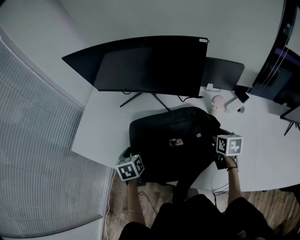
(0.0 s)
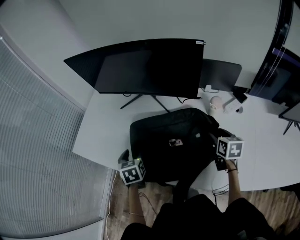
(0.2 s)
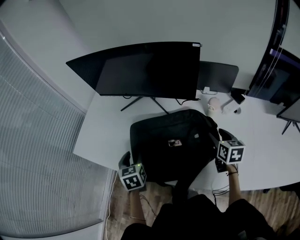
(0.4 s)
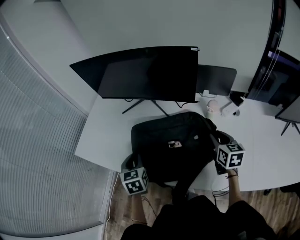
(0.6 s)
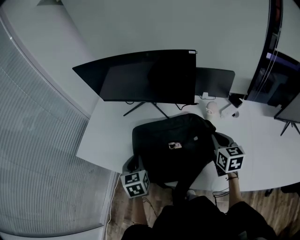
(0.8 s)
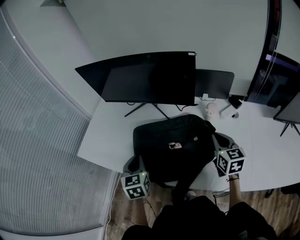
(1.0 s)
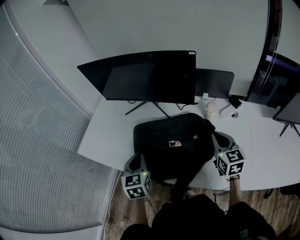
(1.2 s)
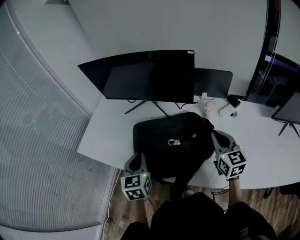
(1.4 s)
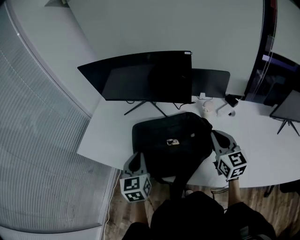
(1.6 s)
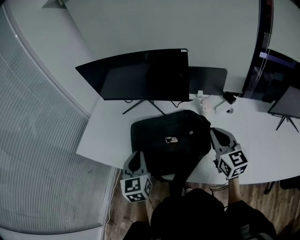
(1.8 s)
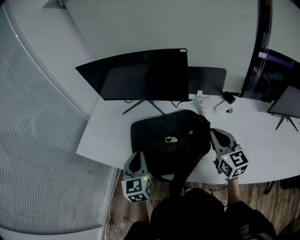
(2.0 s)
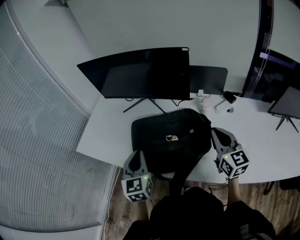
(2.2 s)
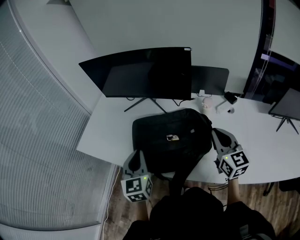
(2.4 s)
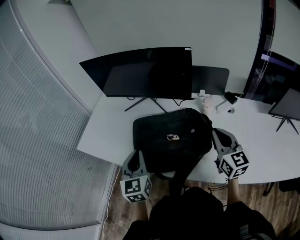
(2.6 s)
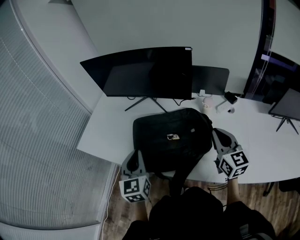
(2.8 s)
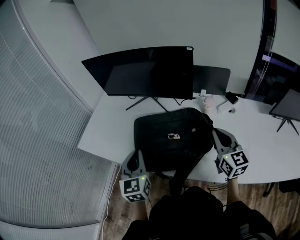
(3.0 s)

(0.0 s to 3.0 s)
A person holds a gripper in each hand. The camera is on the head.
0.0 s - 1.6 s: The two grippers go roughly 20 cm upward and backward. The left gripper changes its angle by about 30 degrees, and closes up. The right gripper tilts its fingers some 30 degrees upward, and closes up.
1.6 s - 3.0 s: There are only small adjustments of the grippers.

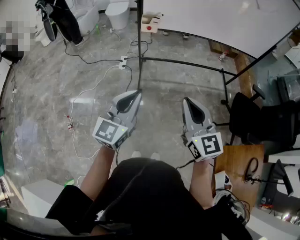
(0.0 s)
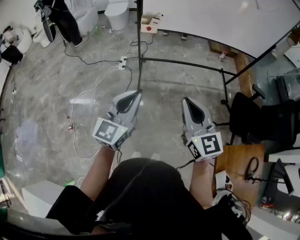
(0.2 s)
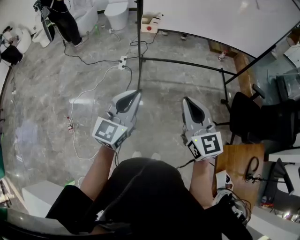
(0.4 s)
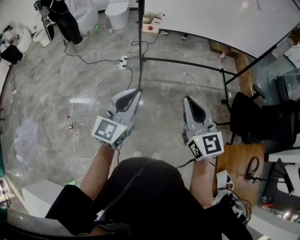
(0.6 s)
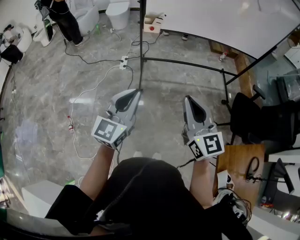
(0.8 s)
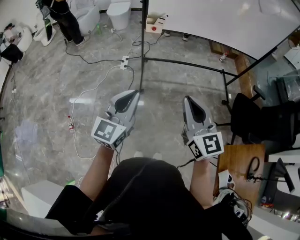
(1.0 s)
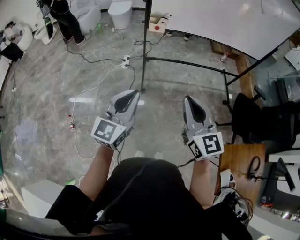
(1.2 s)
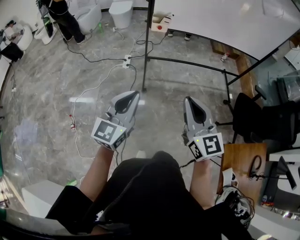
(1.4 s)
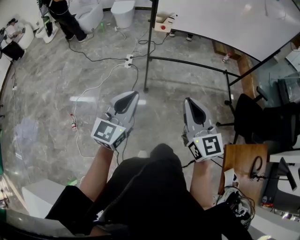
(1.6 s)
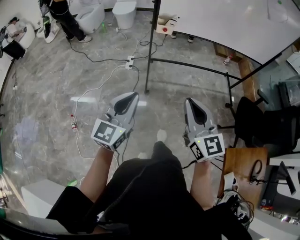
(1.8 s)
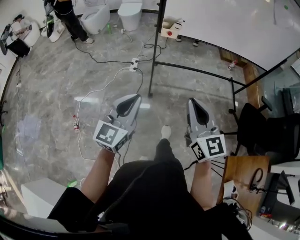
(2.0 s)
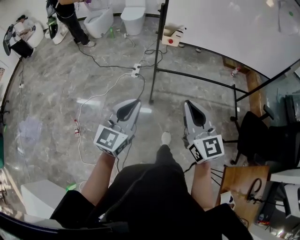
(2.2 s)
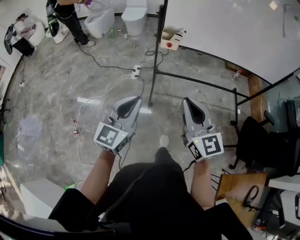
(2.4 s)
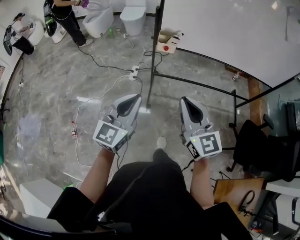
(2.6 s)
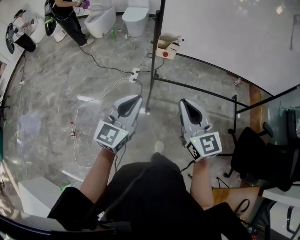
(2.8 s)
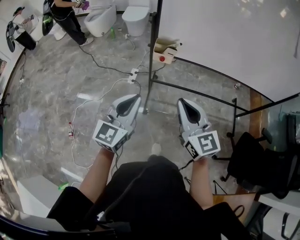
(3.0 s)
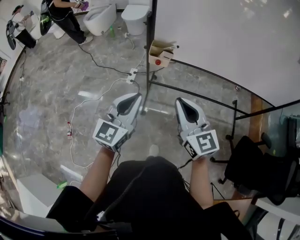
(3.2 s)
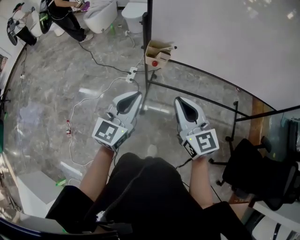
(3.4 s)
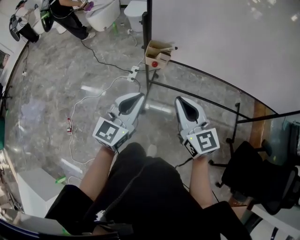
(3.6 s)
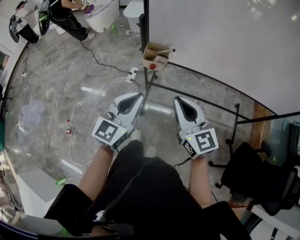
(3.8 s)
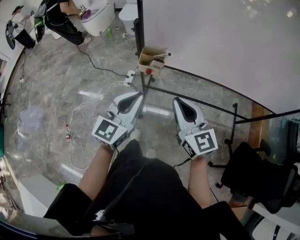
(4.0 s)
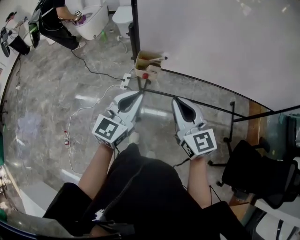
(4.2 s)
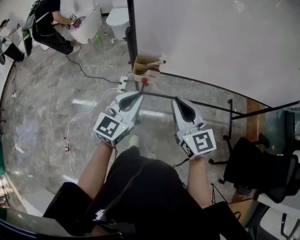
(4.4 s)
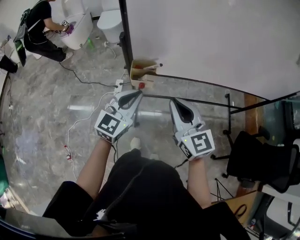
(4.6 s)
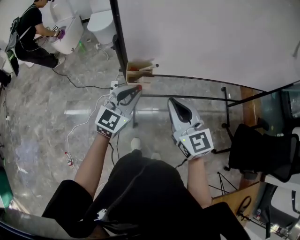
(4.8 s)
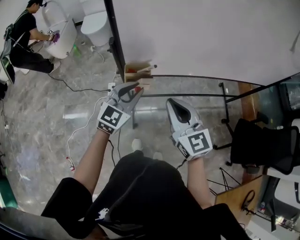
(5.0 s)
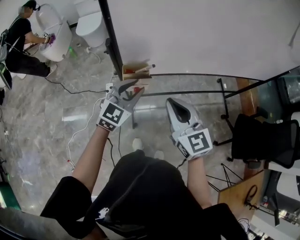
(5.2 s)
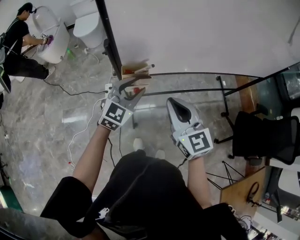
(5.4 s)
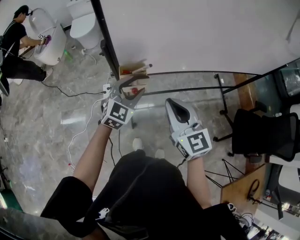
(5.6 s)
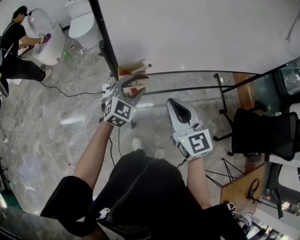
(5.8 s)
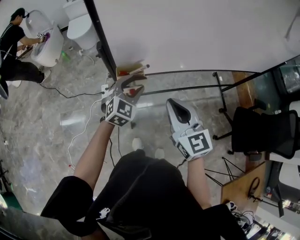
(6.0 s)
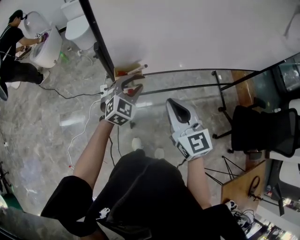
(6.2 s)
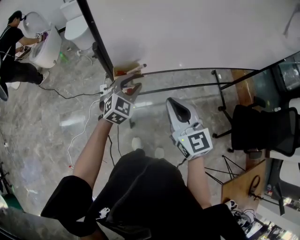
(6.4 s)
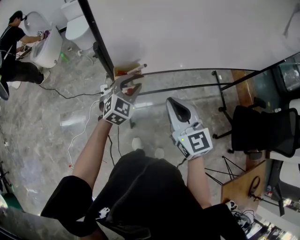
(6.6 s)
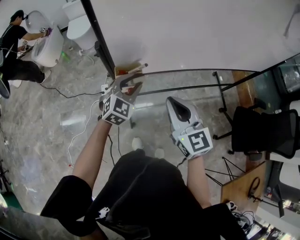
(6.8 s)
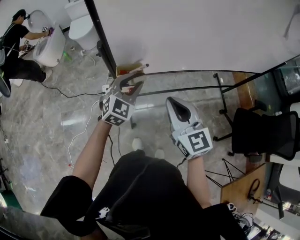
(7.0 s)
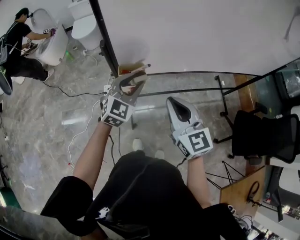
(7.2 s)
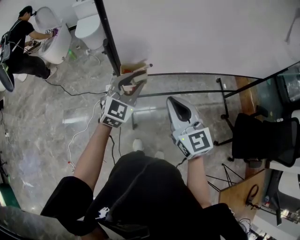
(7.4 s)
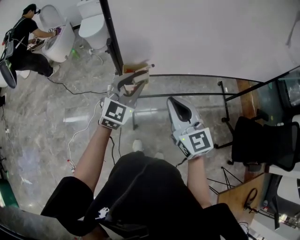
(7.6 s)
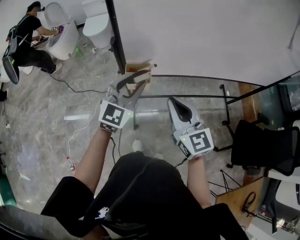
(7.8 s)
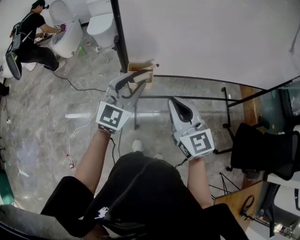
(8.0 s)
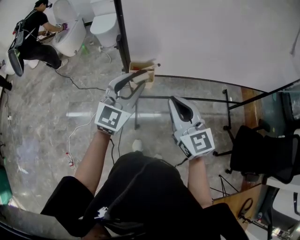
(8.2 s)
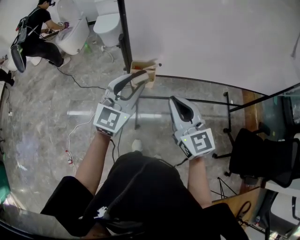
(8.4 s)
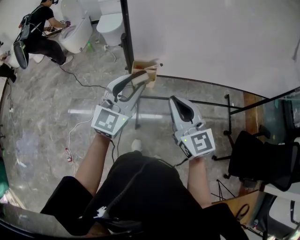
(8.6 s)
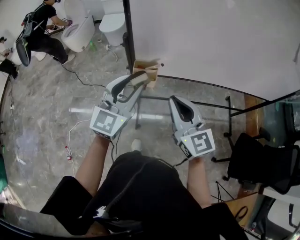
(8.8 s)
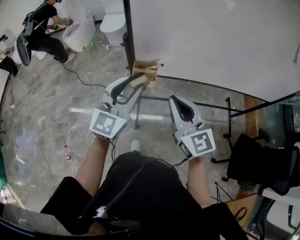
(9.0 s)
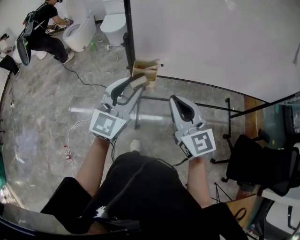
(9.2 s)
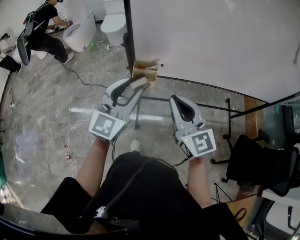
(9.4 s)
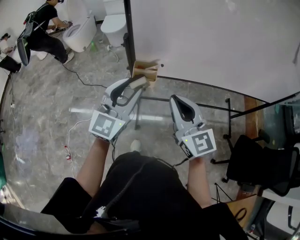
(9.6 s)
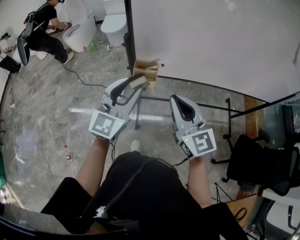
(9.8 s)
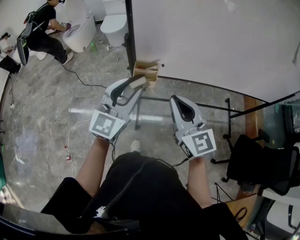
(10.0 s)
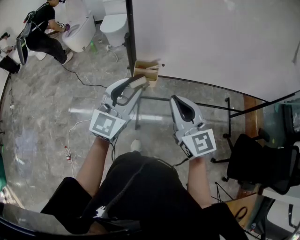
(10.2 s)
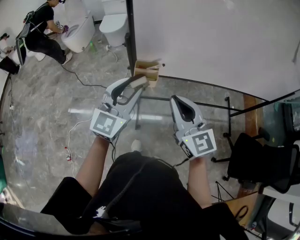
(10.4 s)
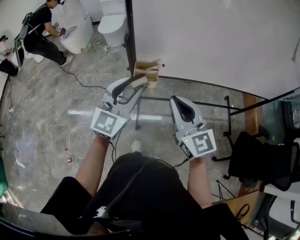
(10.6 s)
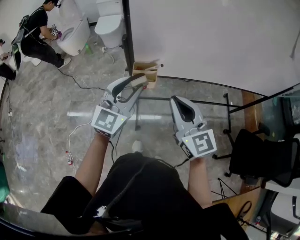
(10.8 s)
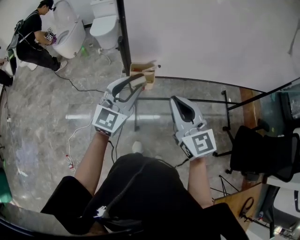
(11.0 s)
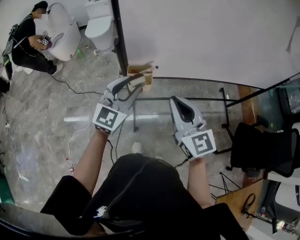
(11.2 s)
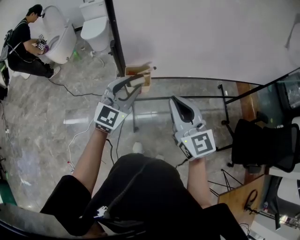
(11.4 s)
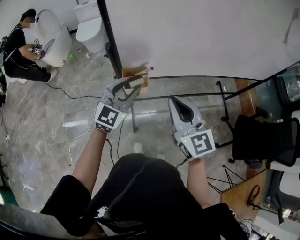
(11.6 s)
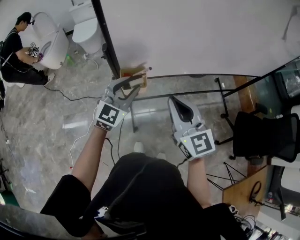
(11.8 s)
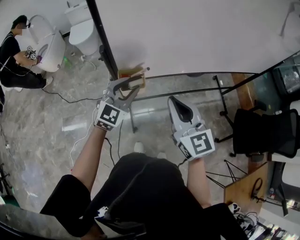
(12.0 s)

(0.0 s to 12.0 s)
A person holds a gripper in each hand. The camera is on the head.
0.0 s - 1.6 s: The grippers both shift to the left by approximately 10 cm.
1.6 s - 3.0 s: The grippers both shift forward by approximately 30 cm.
3.0 s - 4.4 s: The right gripper shifts some 15 cm forward. Meanwhile the left gripper is displaced forward and to the right by some 20 cm.
4.4 s - 6.0 s: The left gripper goes roughly 15 cm forward and downward, turns by roughly 30 degrees, and opens its fingers.
6.0 s - 7.6 s: The left gripper travels upward by roughly 10 cm.
7.6 s - 9.0 s: The left gripper heads backward and upward, covering about 10 cm, and rotates about 20 degrees.
9.0 s - 10.4 s: Both grippers stay put.
10.4 s - 12.0 s: The left gripper moves forward and downward, roughly 15 cm, and rotates roughly 30 degrees.

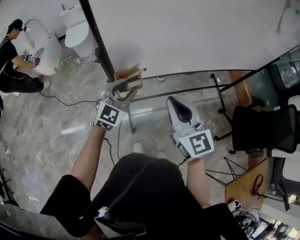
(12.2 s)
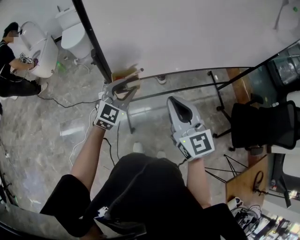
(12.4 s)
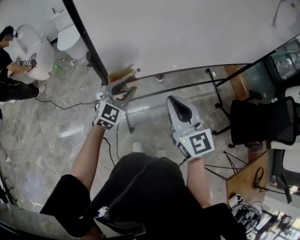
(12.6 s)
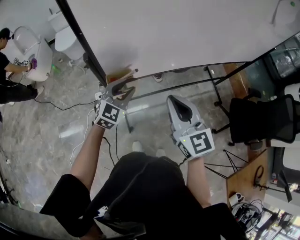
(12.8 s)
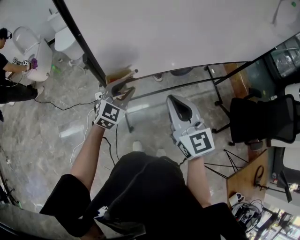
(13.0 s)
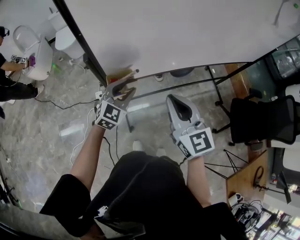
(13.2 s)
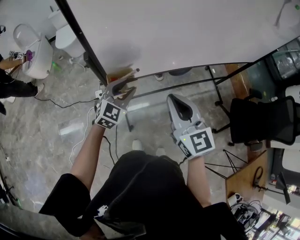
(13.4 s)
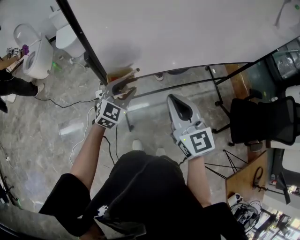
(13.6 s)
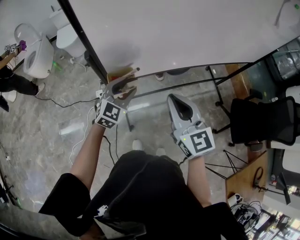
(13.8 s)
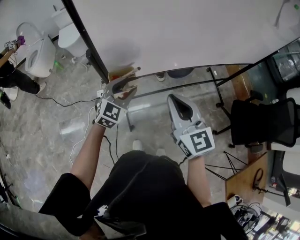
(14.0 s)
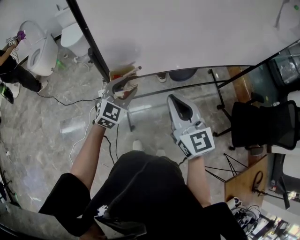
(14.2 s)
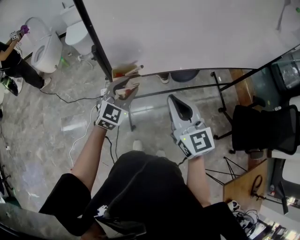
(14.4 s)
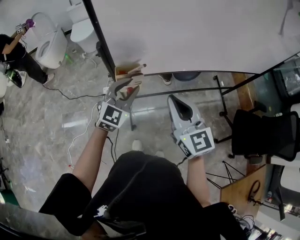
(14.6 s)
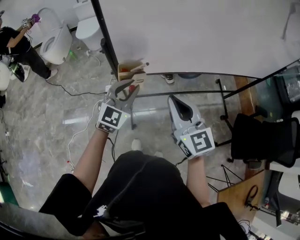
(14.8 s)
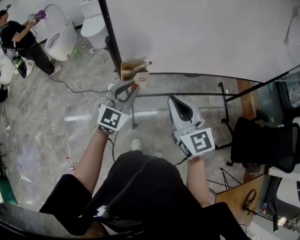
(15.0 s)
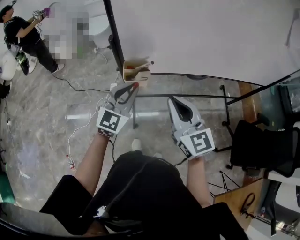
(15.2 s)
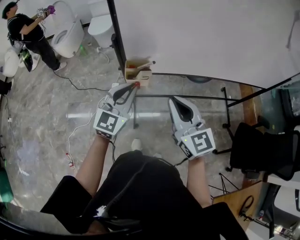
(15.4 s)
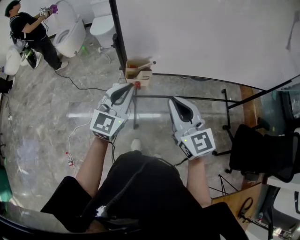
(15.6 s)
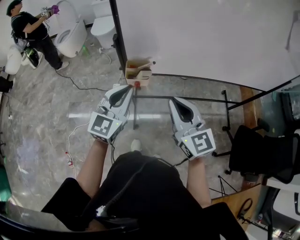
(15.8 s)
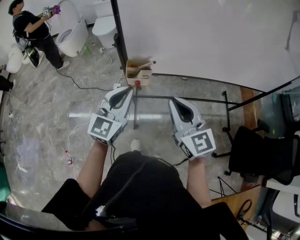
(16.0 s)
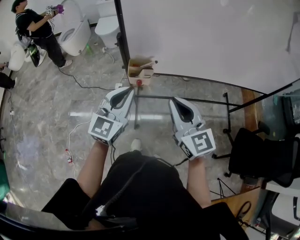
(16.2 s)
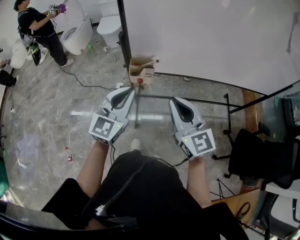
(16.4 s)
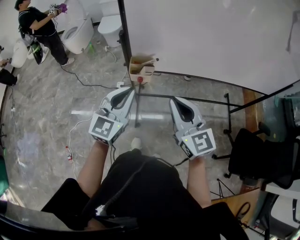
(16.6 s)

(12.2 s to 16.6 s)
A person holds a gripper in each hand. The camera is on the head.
12.2 s - 13.6 s: The left gripper shifts roughly 5 cm downward.
13.6 s - 15.2 s: The left gripper heads backward and upward, covering roughly 15 cm, and closes up; the right gripper shifts by about 5 cm.
15.2 s - 16.6 s: The left gripper is displaced backward by about 5 cm.

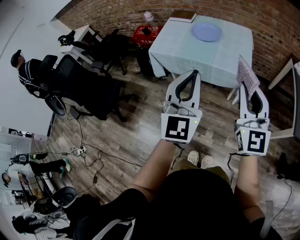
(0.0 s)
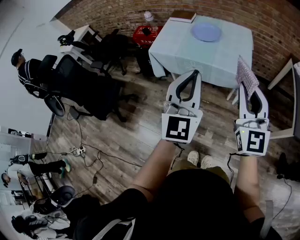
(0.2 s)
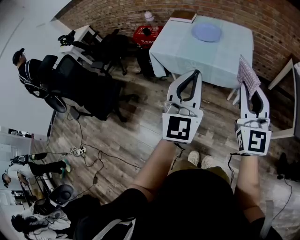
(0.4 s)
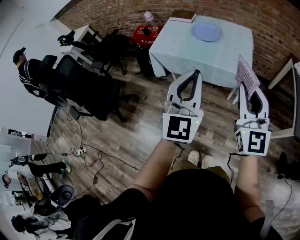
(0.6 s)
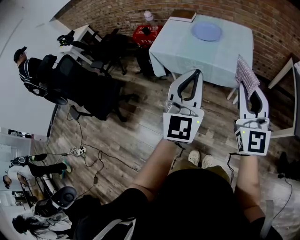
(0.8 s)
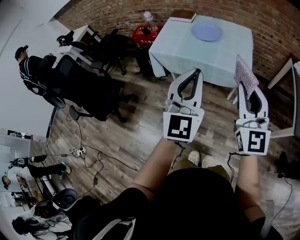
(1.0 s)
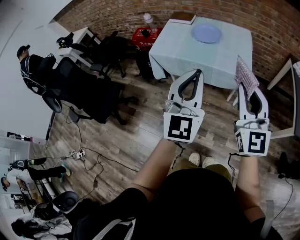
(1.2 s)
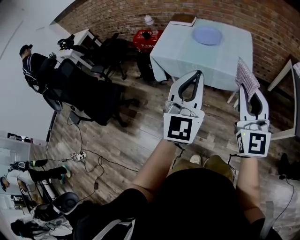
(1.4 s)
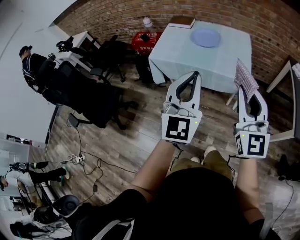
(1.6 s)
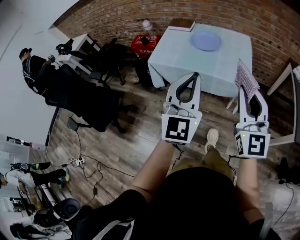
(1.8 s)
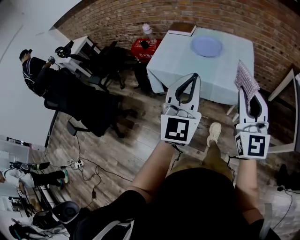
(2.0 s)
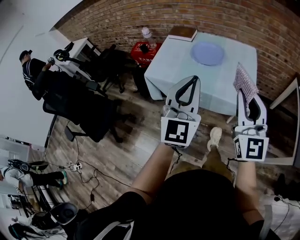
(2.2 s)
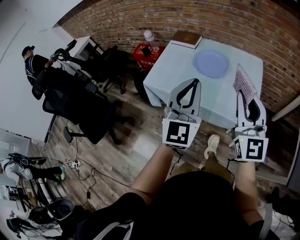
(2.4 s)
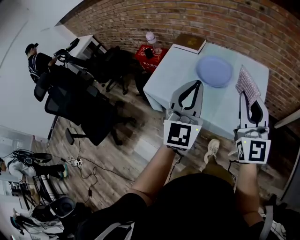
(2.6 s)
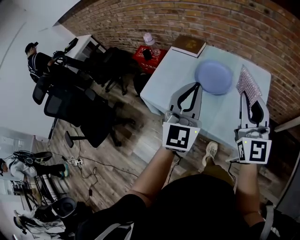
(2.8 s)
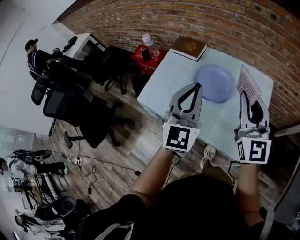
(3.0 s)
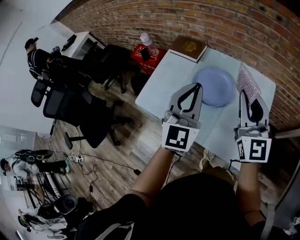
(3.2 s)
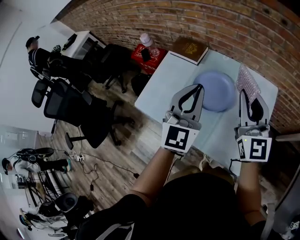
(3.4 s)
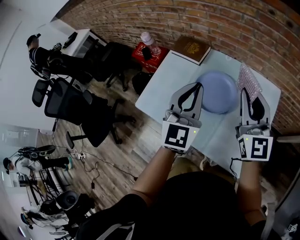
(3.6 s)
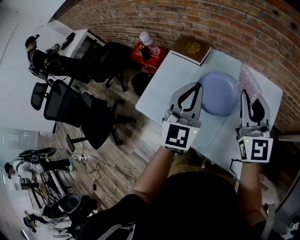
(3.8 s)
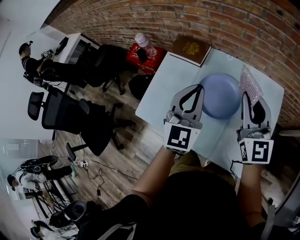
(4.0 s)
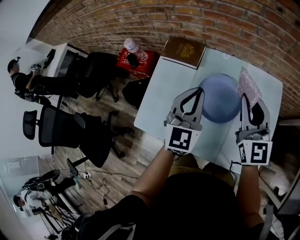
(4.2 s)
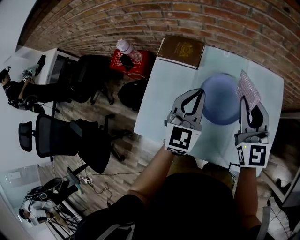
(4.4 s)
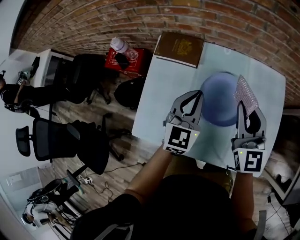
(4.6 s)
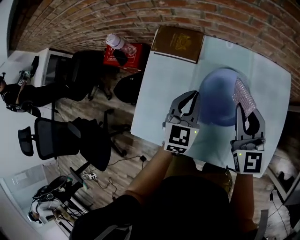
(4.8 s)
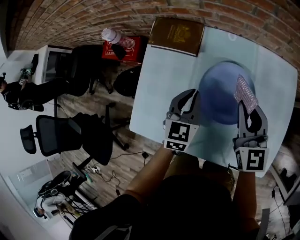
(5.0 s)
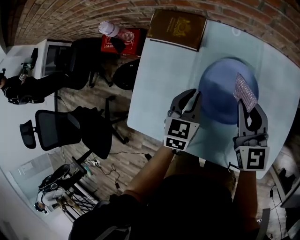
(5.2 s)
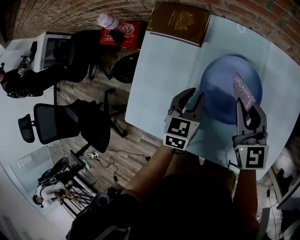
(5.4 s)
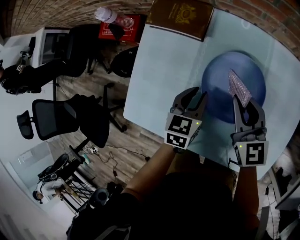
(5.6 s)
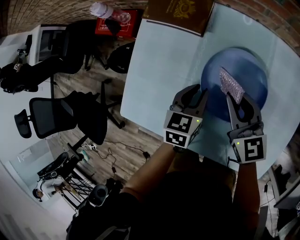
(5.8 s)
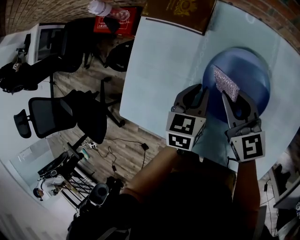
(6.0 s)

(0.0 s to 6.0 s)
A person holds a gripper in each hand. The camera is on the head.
0.0 s - 1.6 s: There are only small adjustments of the grippers.
1.6 s - 3.0 s: Both grippers are carried forward, approximately 50 cm.
3.0 s - 4.4 s: The right gripper travels forward, downward and to the left by some 20 cm. The left gripper is displaced forward and downward by roughly 25 cm, and changes its angle by roughly 20 degrees.
4.4 s - 6.0 s: Both grippers move downward, roughly 25 cm. The left gripper tilts its fingers roughly 30 degrees downward. The right gripper turns by some 30 degrees.
